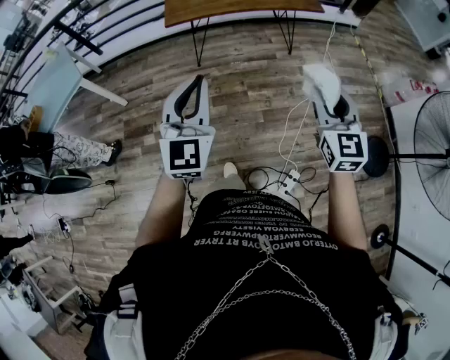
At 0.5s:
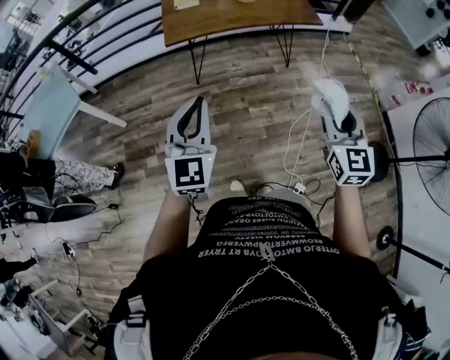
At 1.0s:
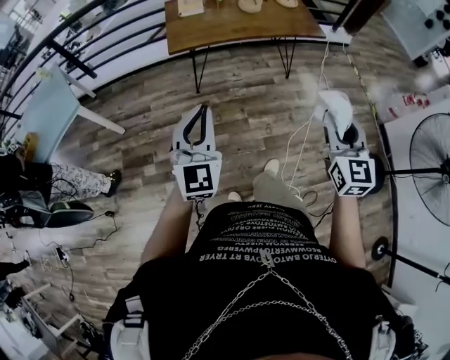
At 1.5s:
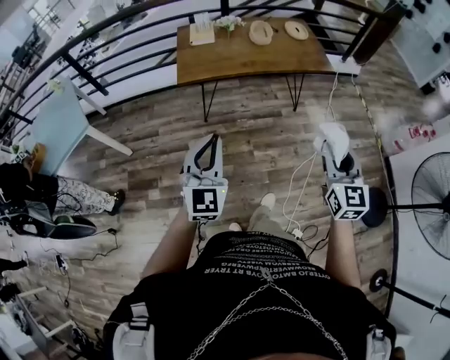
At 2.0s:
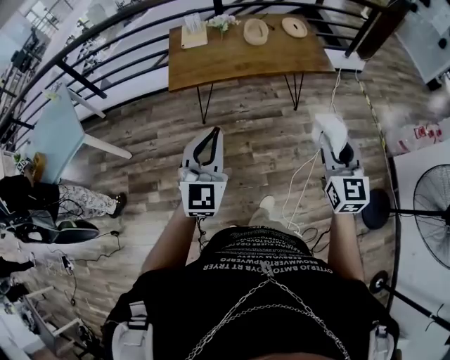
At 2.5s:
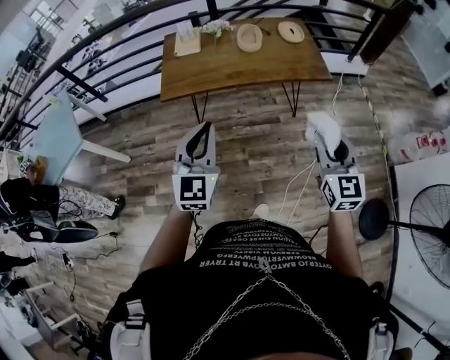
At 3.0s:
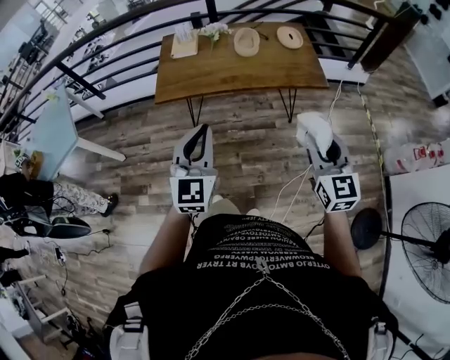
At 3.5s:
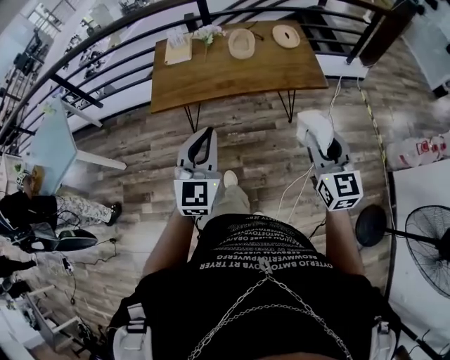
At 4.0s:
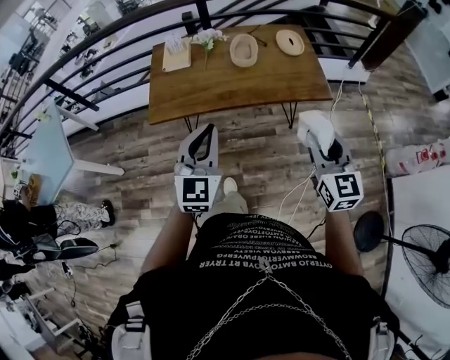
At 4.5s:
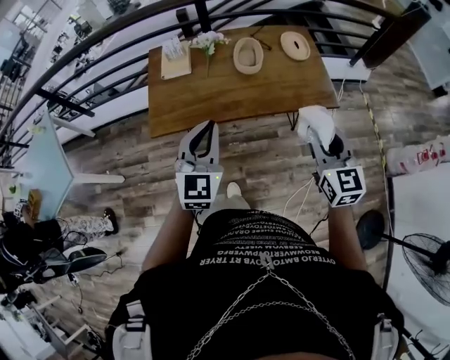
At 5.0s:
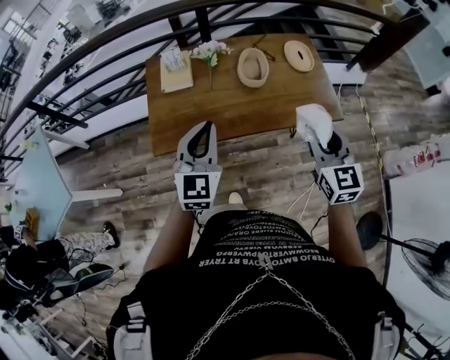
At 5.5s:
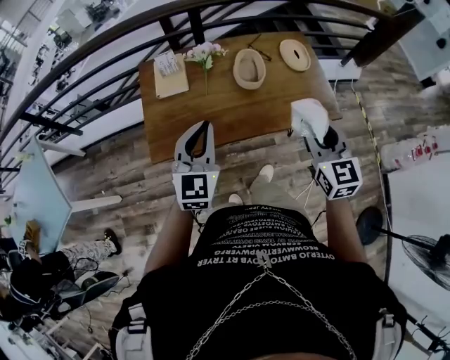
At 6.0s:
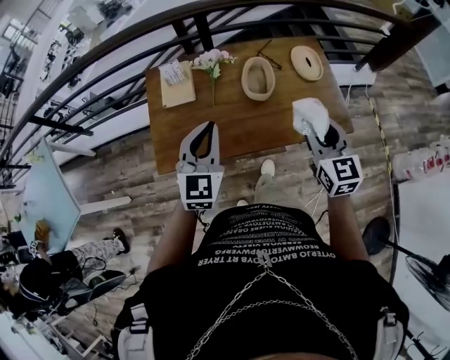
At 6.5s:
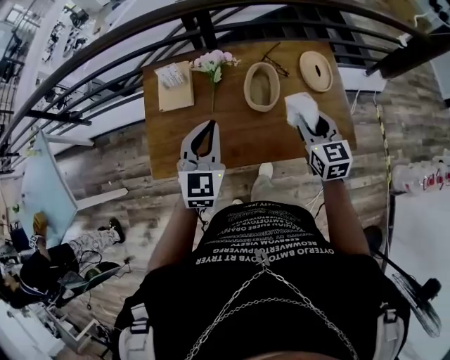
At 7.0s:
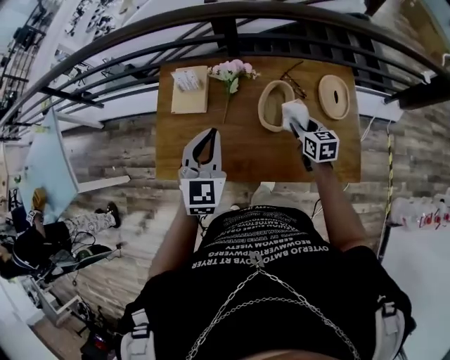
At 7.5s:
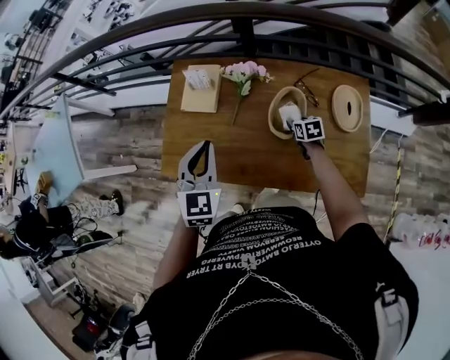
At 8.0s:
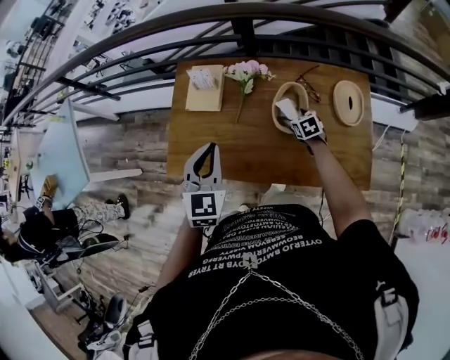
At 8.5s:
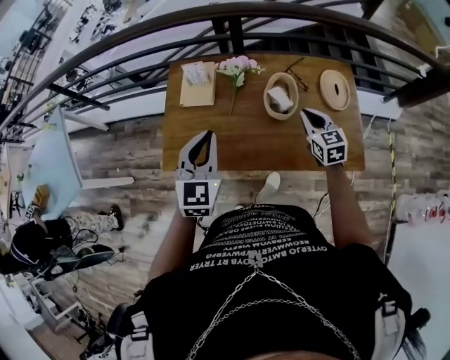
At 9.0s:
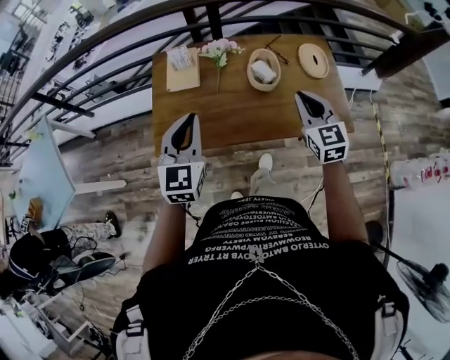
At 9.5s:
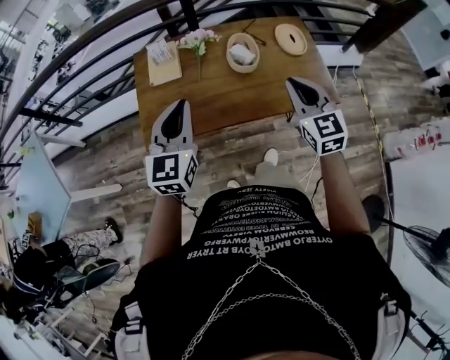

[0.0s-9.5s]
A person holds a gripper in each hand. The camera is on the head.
0.0s to 2.0s: The grippers both shift forward by approximately 20 cm.
2.0s to 4.0s: The left gripper travels forward and to the right by some 25 cm. The right gripper shifts approximately 20 cm forward.
4.0s to 5.5s: The two grippers go roughly 20 cm forward and to the left.
5.5s to 7.5s: The left gripper ends up some 15 cm from where it was, and changes its angle by roughly 30 degrees. The right gripper shifts approximately 35 cm downward, and points its fingers approximately 40 degrees further downward.
7.5s to 9.5s: The left gripper changes place by roughly 15 cm, and turns by roughly 30 degrees. The right gripper moves upward, about 35 cm, tilts its fingers about 40 degrees upward, and closes up.

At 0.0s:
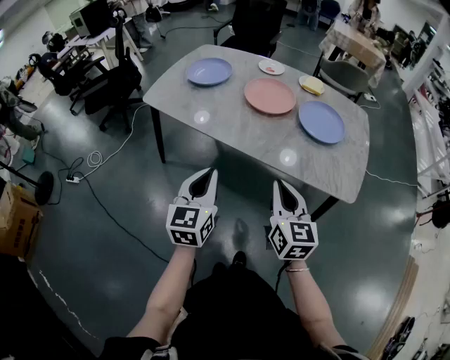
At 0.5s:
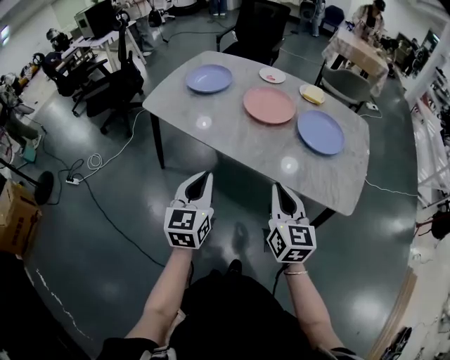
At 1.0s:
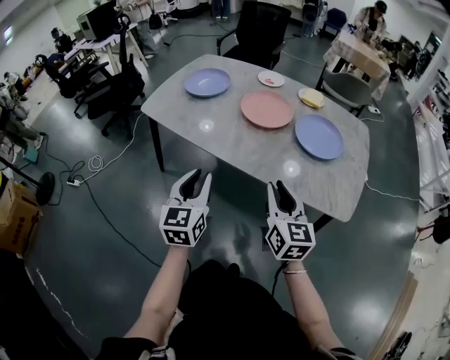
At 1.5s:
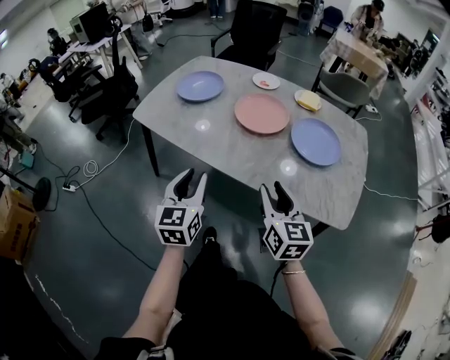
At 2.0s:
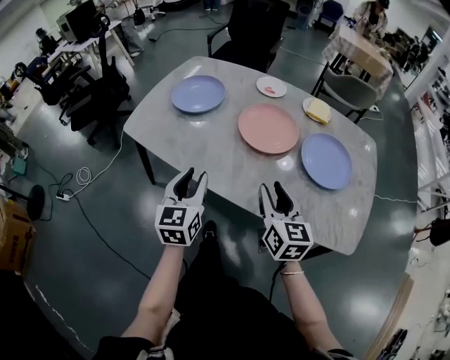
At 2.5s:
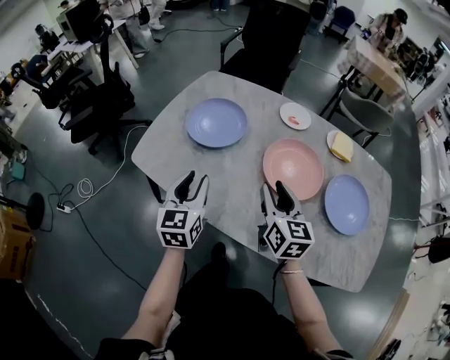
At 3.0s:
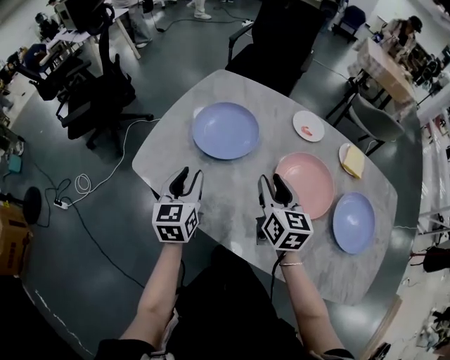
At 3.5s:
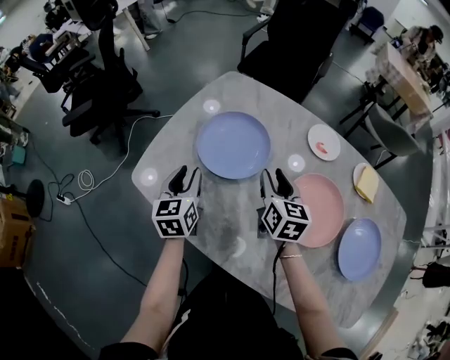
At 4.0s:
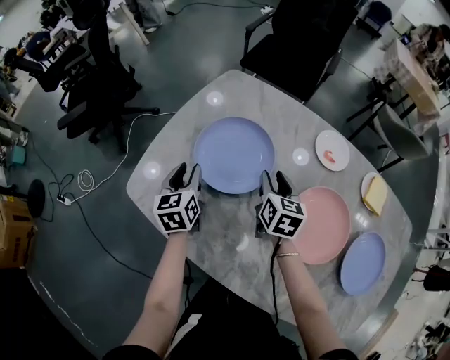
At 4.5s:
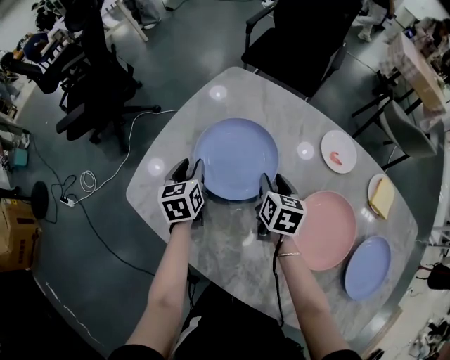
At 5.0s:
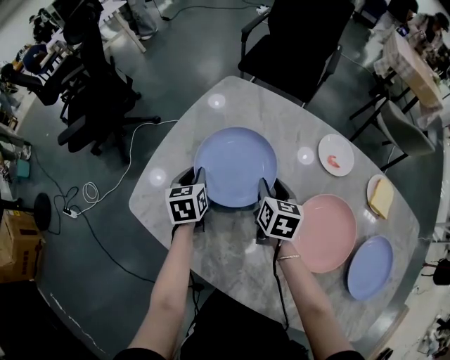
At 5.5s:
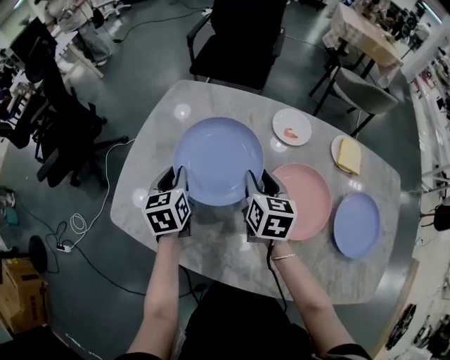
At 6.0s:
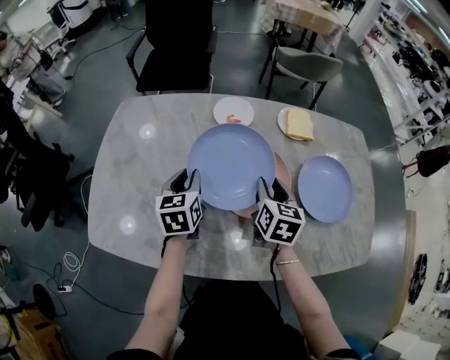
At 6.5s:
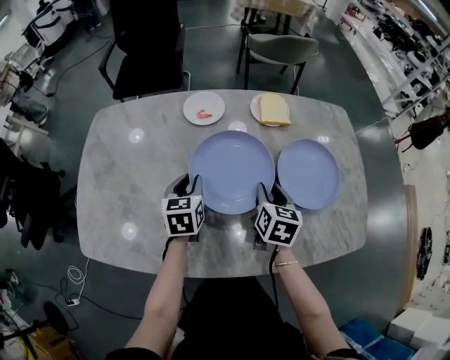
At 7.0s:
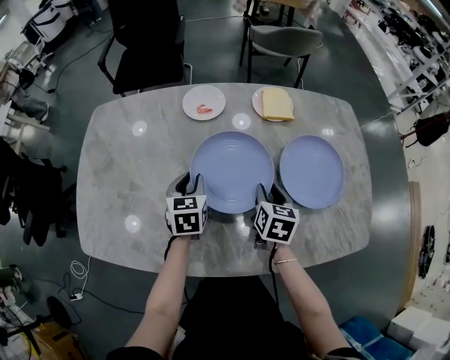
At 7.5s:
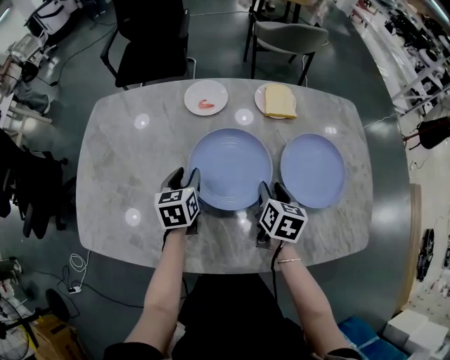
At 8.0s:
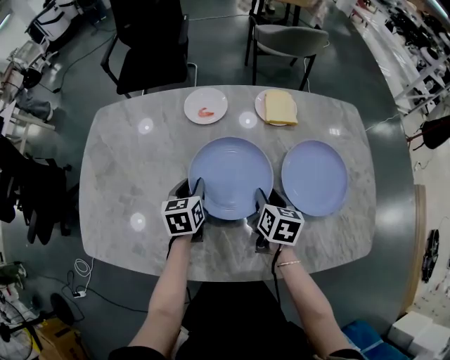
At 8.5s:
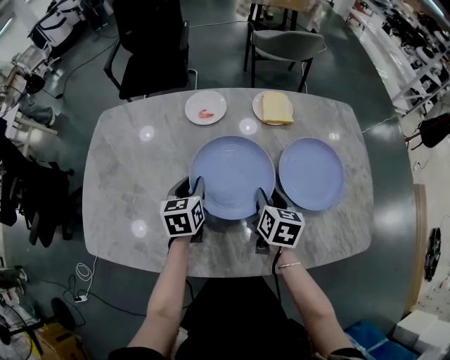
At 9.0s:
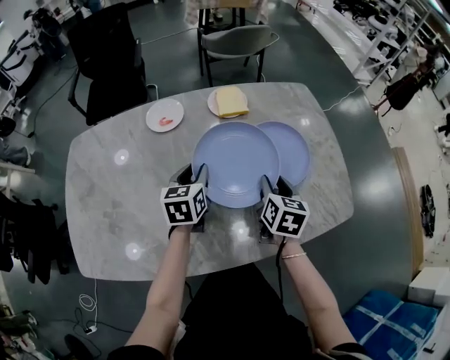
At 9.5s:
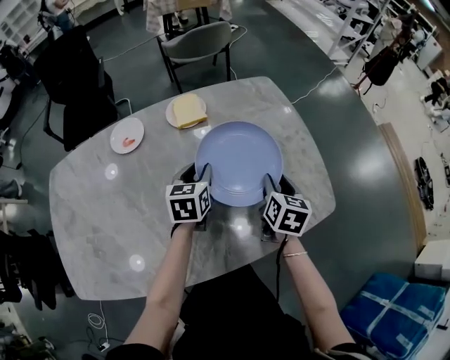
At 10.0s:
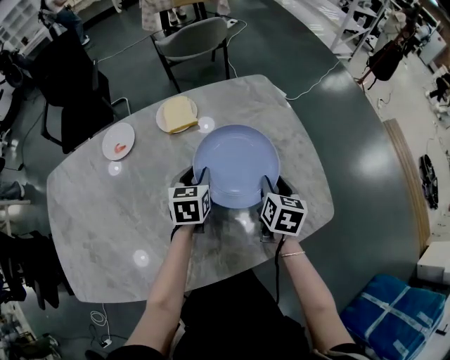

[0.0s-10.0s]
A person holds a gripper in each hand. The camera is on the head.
0.0s to 2.0s: The grippers both shift forward by about 20 cm. The left gripper opens, while the right gripper opens.
2.0s to 4.0s: The two grippers travel together, forward, some 40 cm. The left gripper turns by approximately 20 degrees.
4.0s to 6.0s: The left gripper ends up about 25 cm from where it was, and turns by about 30 degrees. Meanwhile the right gripper shifts by about 25 cm, and rotates about 30 degrees.
6.0s to 8.0s: The right gripper goes some 15 cm downward and to the right, while the left gripper goes roughly 10 cm to the right and downward.
8.0s to 10.0s: The right gripper shifts by approximately 25 cm, and swivels approximately 20 degrees. The left gripper shifts by roughly 30 cm, and swivels roughly 30 degrees.

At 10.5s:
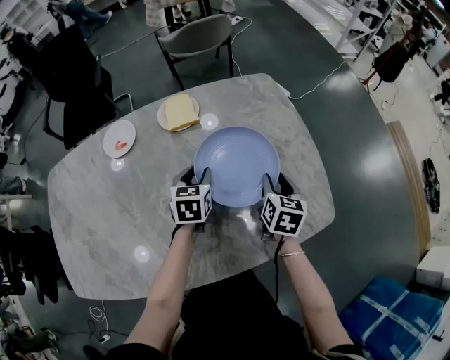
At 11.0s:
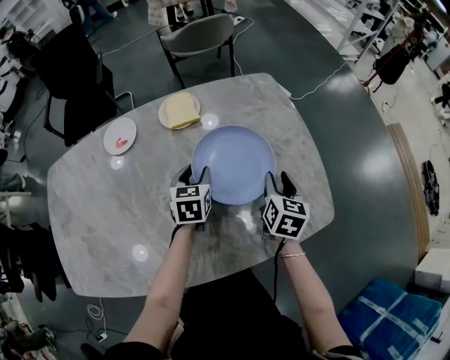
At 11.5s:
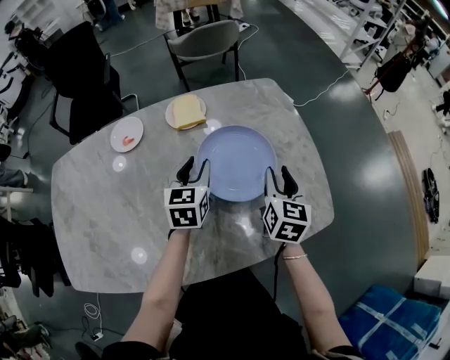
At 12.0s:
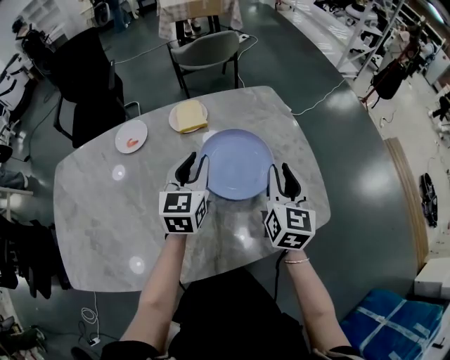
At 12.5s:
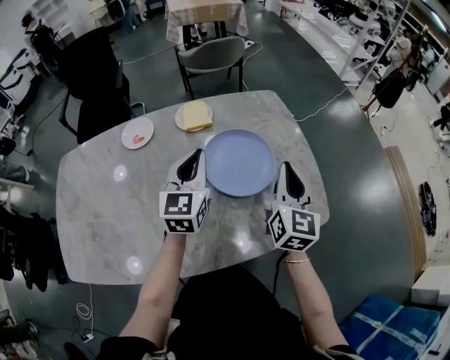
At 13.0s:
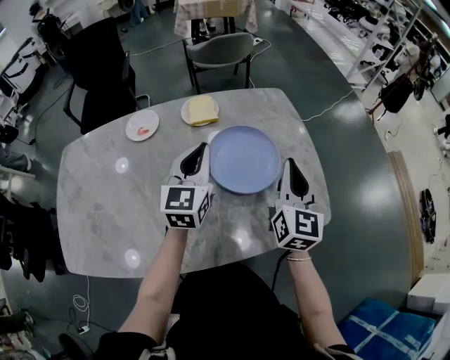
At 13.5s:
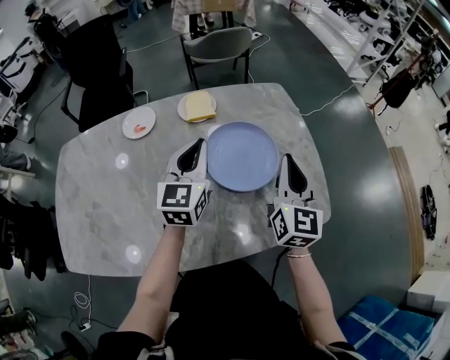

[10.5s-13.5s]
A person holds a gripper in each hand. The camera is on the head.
10.5s to 12.0s: Both grippers move upward, roughly 15 cm. The left gripper changes its angle by some 20 degrees; the right gripper swivels about 30 degrees.
12.0s to 13.5s: The left gripper closes up; the right gripper closes up.

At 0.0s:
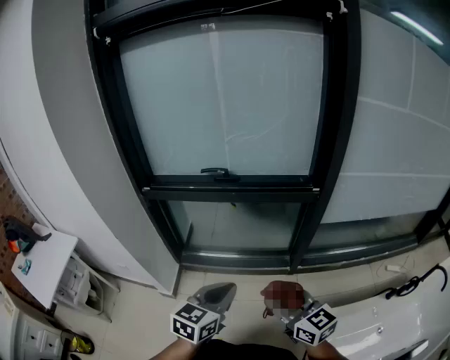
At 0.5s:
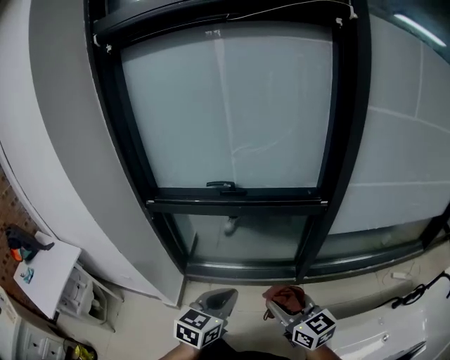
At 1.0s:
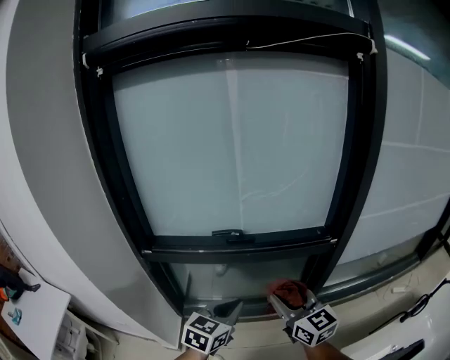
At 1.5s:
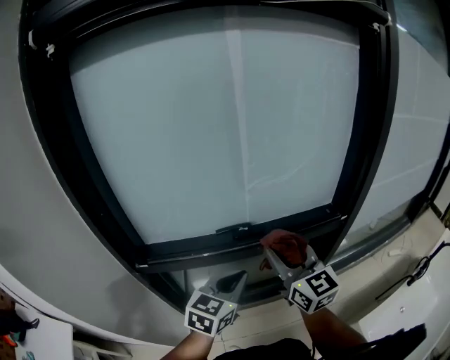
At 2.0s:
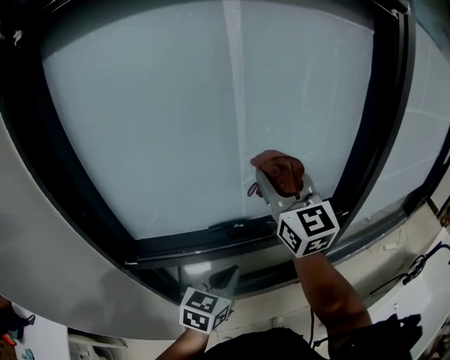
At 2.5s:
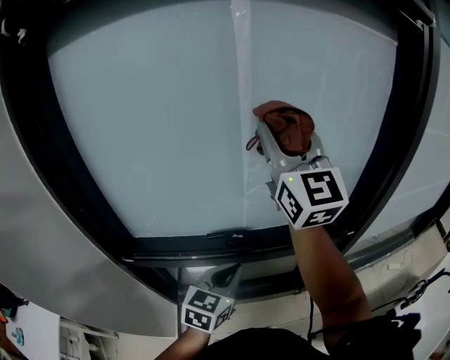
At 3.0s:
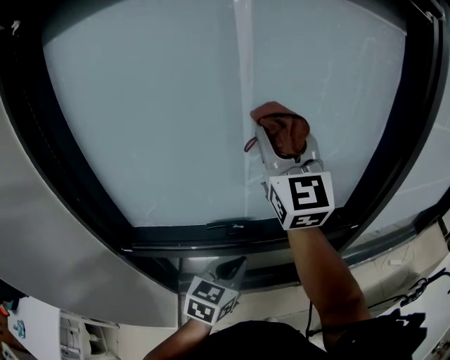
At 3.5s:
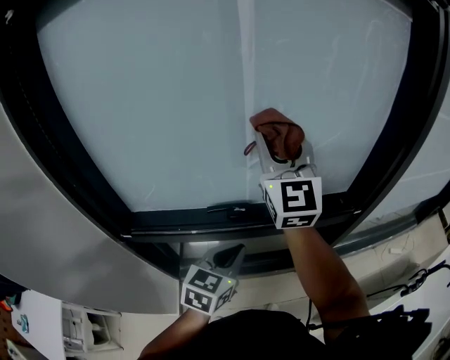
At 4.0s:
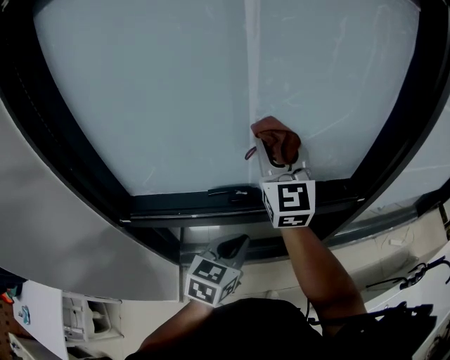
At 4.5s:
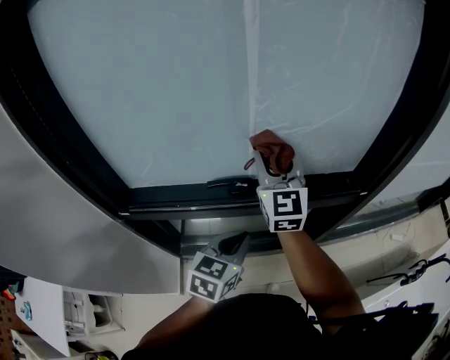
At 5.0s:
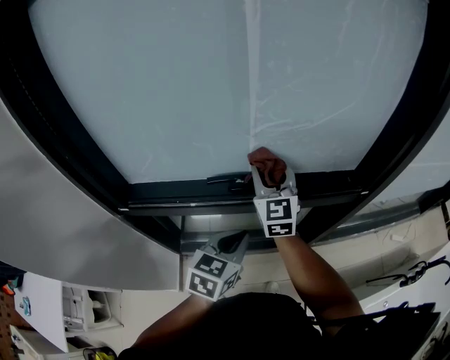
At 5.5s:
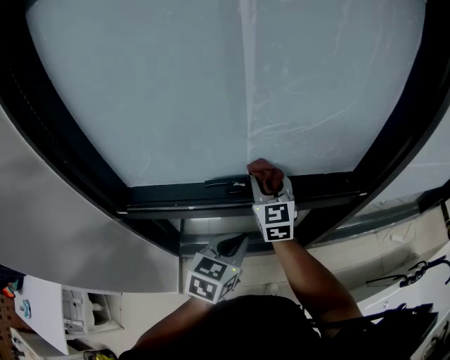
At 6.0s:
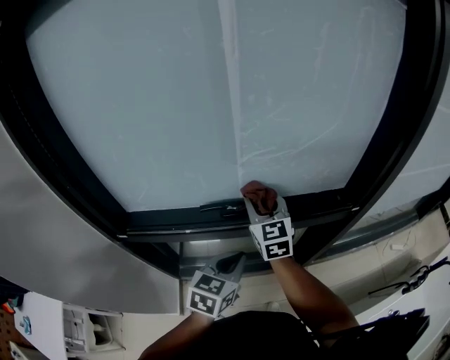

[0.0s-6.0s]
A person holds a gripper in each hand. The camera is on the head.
0.0s to 2.0s: The left gripper heads forward and to the left, covering some 40 cm, while the right gripper moves forward and upward, about 50 cm, and changes its angle by some 40 degrees.
2.0s to 4.0s: The right gripper is displaced downward and forward by some 10 cm, while the left gripper ends up about 5 cm from where it was.
4.0s to 6.0s: The right gripper heads downward, covering approximately 15 cm, and rotates some 20 degrees.
